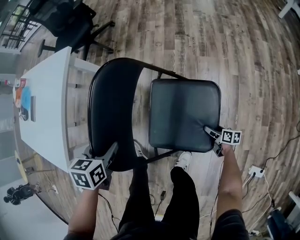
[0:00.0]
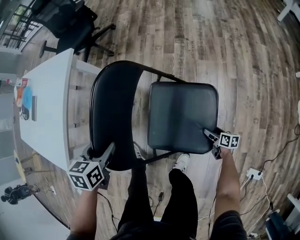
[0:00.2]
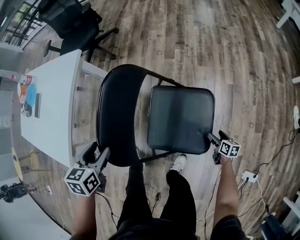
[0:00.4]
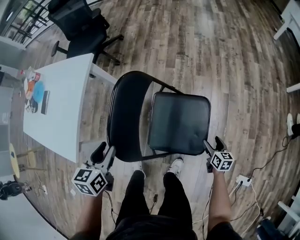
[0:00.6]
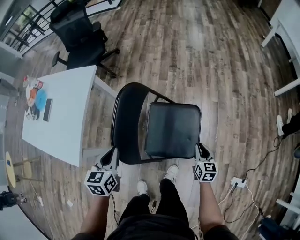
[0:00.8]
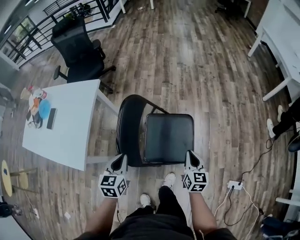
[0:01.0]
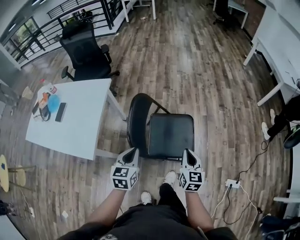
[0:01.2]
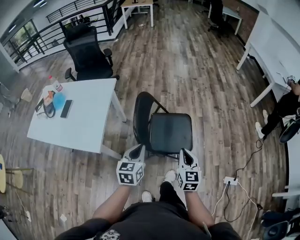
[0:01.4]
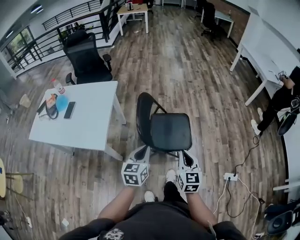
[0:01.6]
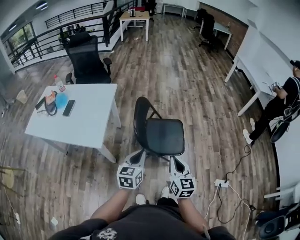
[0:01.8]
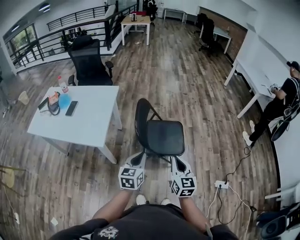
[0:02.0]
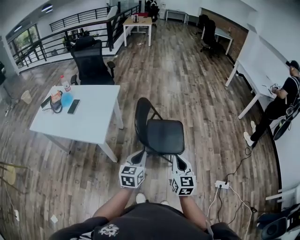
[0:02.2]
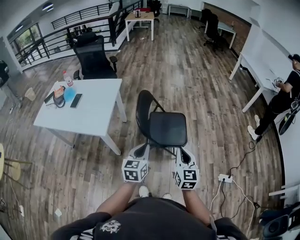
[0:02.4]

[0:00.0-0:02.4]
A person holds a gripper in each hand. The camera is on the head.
0:00.0 to 0:01.2: The right gripper moves upward, roughly 50 cm, rotates approximately 60 degrees, and closes up, while the left gripper moves upward, about 25 cm, tilts its fingers about 30 degrees upward, and closes up.
0:01.2 to 0:02.4: The grippers both shift backward and upward by roughly 30 cm.

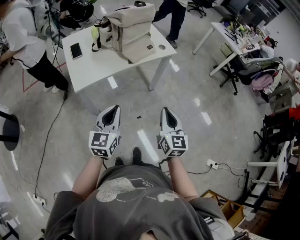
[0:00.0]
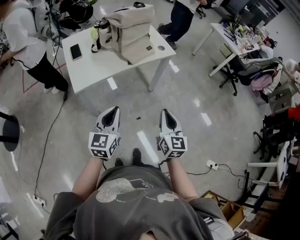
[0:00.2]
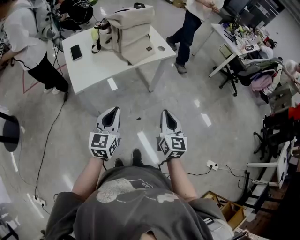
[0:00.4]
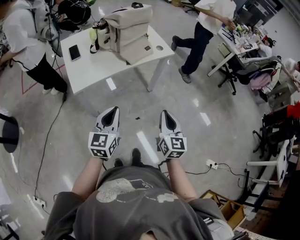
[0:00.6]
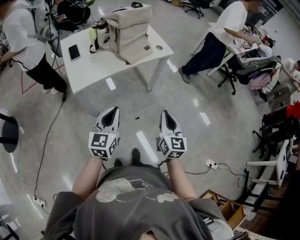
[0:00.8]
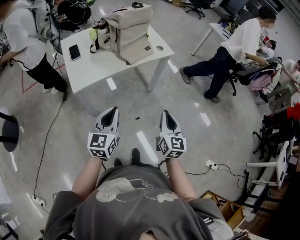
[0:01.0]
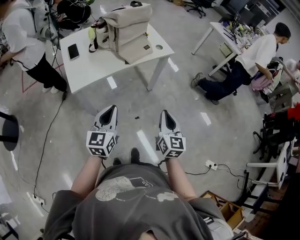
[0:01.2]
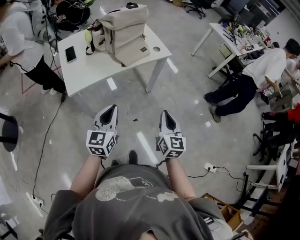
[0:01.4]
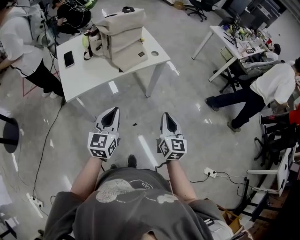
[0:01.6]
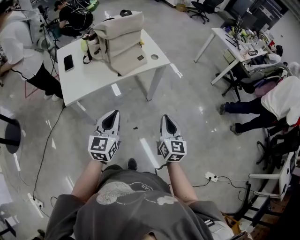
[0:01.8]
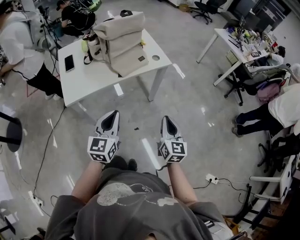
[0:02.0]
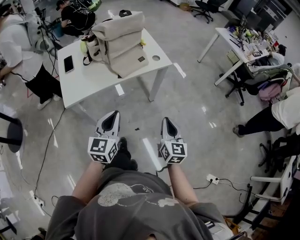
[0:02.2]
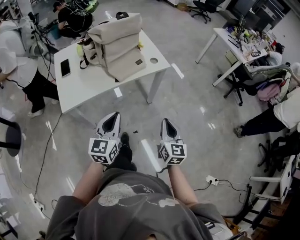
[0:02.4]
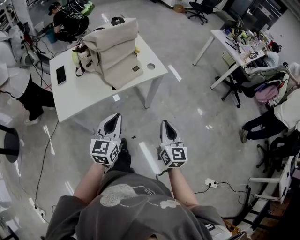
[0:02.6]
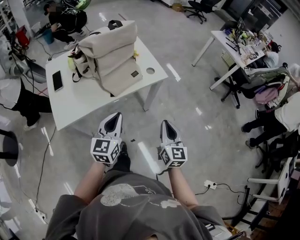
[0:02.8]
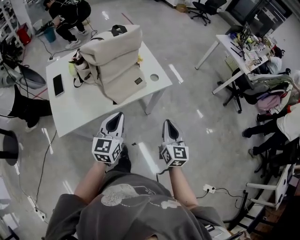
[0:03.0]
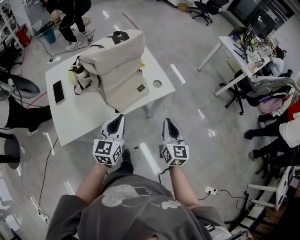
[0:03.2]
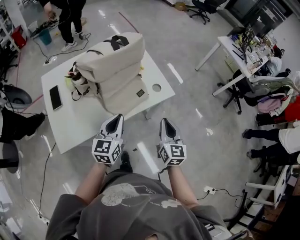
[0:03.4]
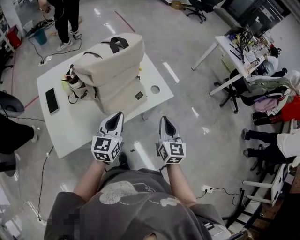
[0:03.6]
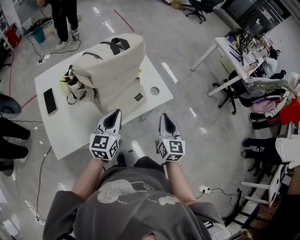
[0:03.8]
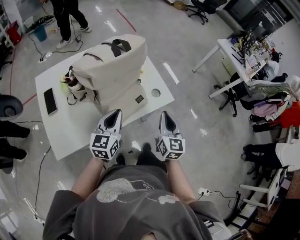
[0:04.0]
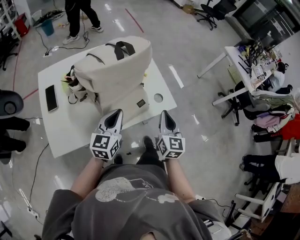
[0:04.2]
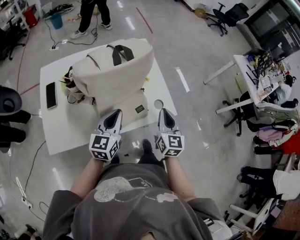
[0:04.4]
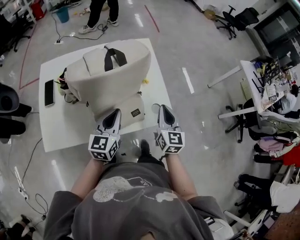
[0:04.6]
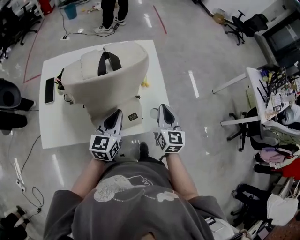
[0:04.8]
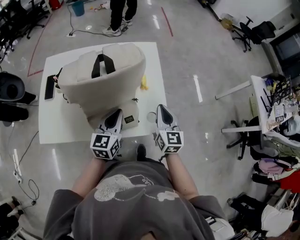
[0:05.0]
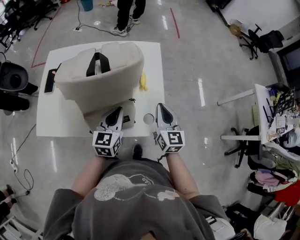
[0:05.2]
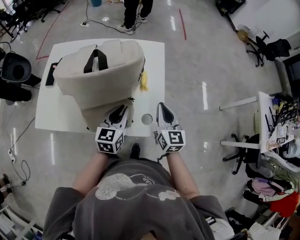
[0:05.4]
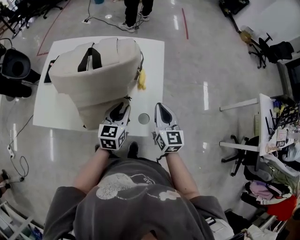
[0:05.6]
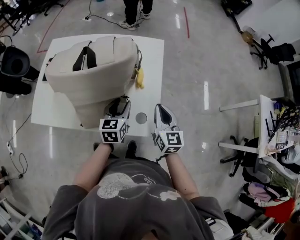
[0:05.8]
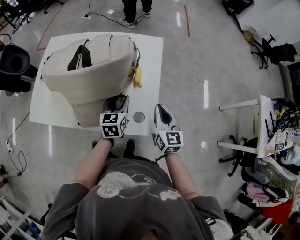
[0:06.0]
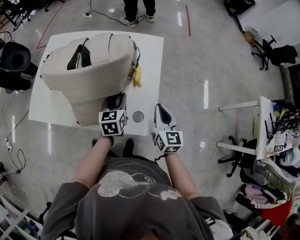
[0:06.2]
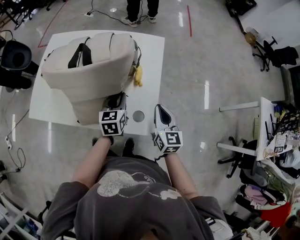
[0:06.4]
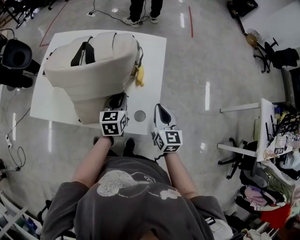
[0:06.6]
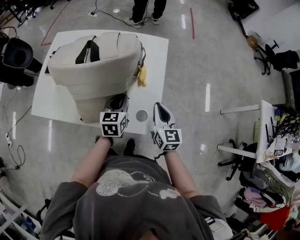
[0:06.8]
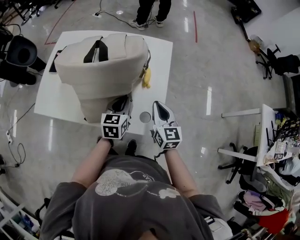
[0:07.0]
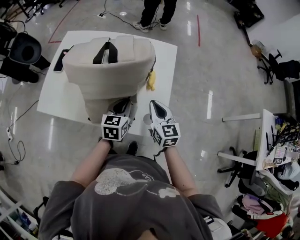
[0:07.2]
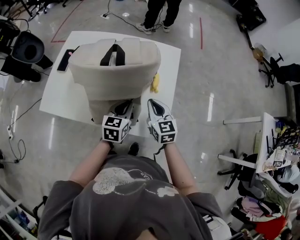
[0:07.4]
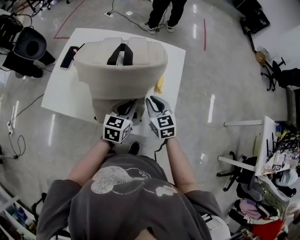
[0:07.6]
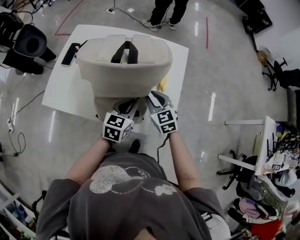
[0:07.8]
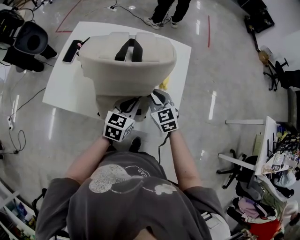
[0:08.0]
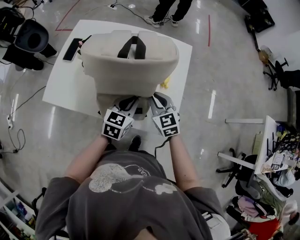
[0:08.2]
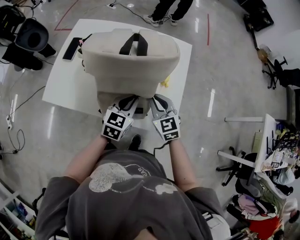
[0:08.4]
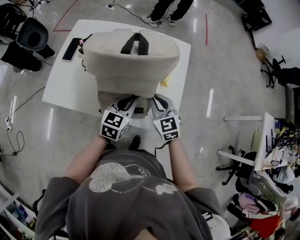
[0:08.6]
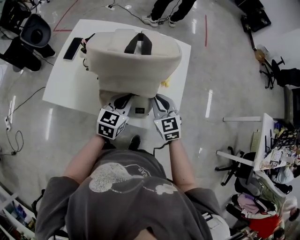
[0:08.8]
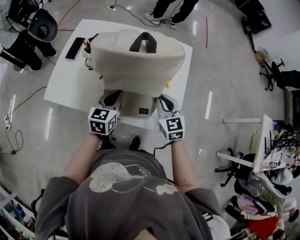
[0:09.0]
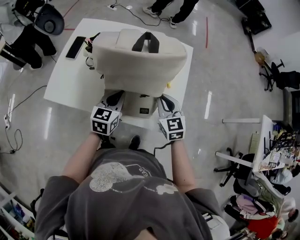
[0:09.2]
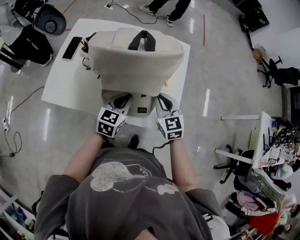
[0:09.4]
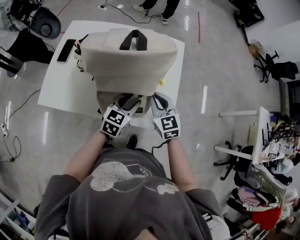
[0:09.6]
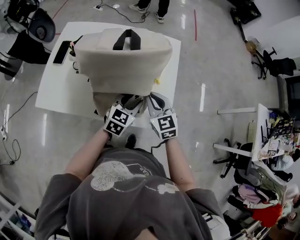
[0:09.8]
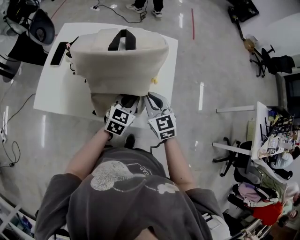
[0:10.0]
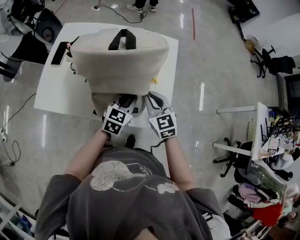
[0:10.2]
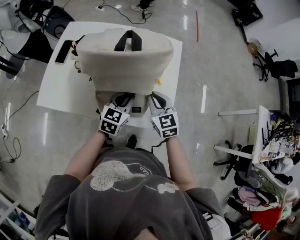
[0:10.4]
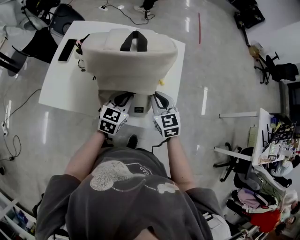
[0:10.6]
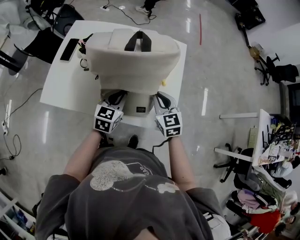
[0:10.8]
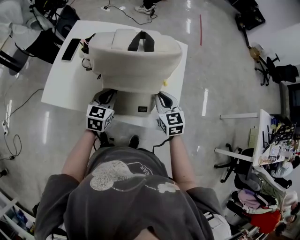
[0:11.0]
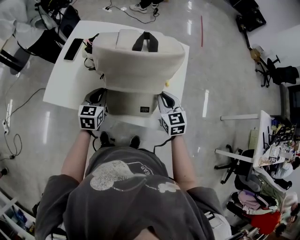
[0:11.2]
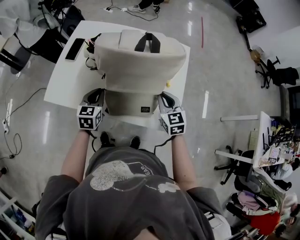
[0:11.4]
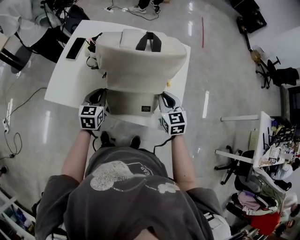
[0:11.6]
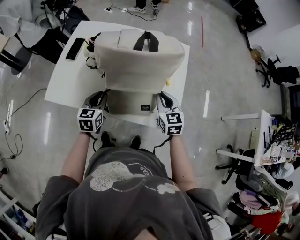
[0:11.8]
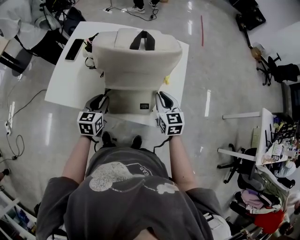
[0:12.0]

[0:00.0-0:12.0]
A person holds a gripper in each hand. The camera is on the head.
0:00.0 to 0:01.6: Both grippers travel together to the right and forward, roughly 10 cm.
0:01.6 to 0:03.0: Both grippers travel together forward, some 20 cm.
0:03.0 to 0:04.4: Both grippers travel together forward, about 25 cm.
0:04.4 to 0:06.0: The right gripper shifts by approximately 15 cm, and swivels about 30 degrees. The left gripper changes place by some 20 cm, swivels roughly 40 degrees, and opens its fingers.
0:06.0 to 0:07.6: The left gripper moves roughly 5 cm, and closes, while the right gripper goes approximately 15 cm to the left, and turns by some 30 degrees.
0:07.6 to 0:09.0: The left gripper is displaced to the left by approximately 10 cm.
0:09.0 to 0:10.4: The left gripper is displaced to the right by some 10 cm, and opens, then closes again.
0:10.4 to 0:12.0: The left gripper shifts about 15 cm to the left.

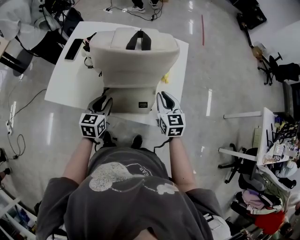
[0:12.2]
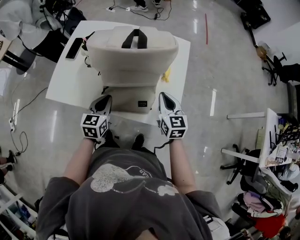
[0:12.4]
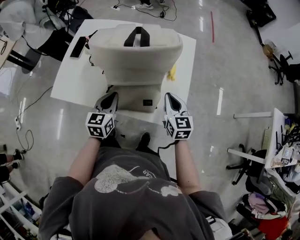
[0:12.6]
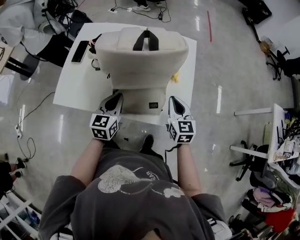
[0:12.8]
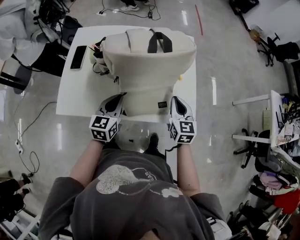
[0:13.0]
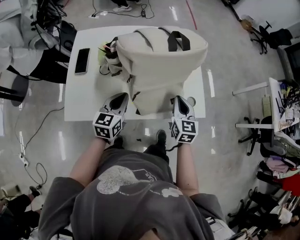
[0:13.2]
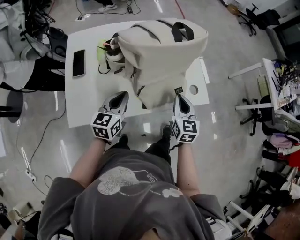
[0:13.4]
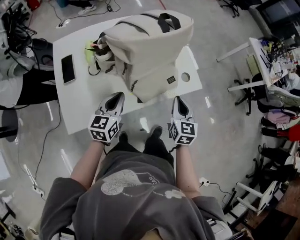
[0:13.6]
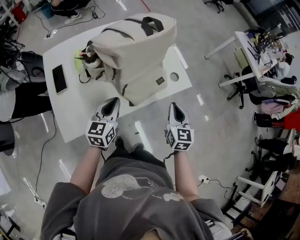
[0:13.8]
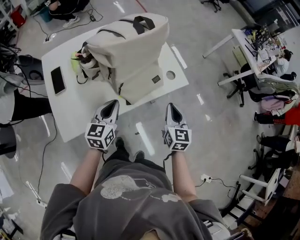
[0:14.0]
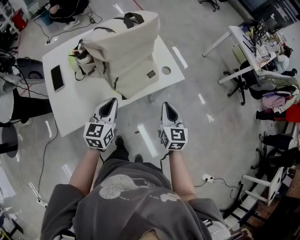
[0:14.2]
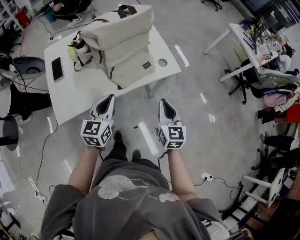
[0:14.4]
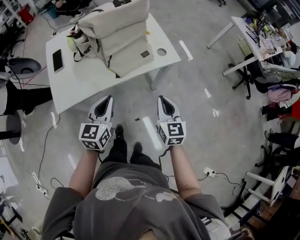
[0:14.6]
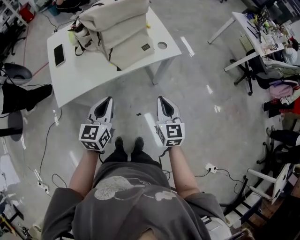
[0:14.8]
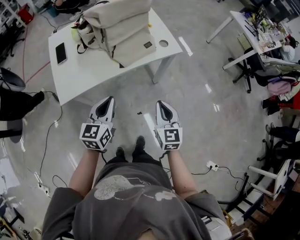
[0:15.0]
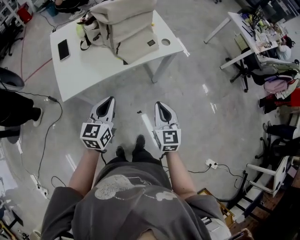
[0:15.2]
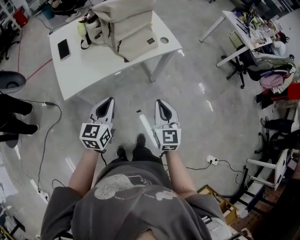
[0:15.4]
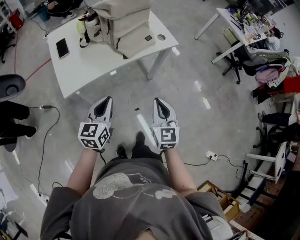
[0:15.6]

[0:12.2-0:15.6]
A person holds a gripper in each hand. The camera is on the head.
0:12.2 to 0:13.8: The left gripper shifts by about 10 cm, swivels approximately 40 degrees, and closes its fingers. Meanwhile the right gripper changes place by some 20 cm, and swivels approximately 50 degrees.
0:13.8 to 0:15.6: The two grippers go roughly 25 cm backward.

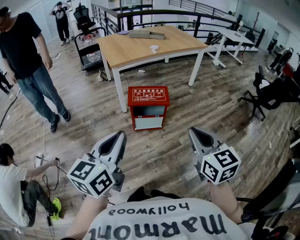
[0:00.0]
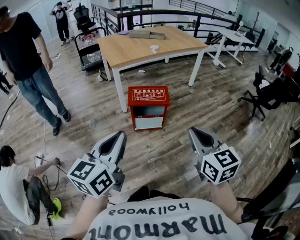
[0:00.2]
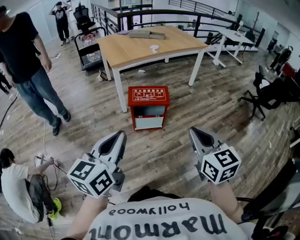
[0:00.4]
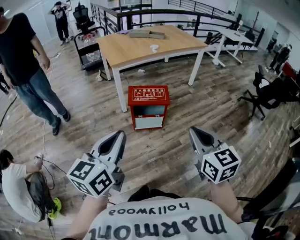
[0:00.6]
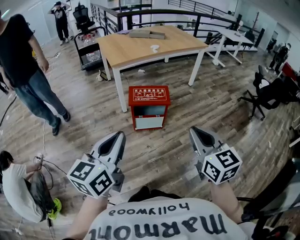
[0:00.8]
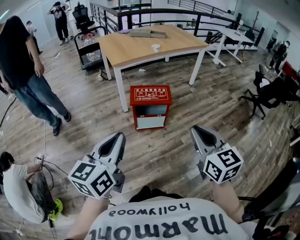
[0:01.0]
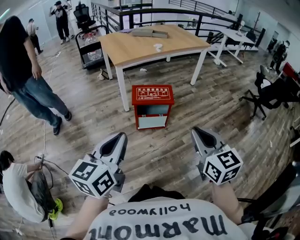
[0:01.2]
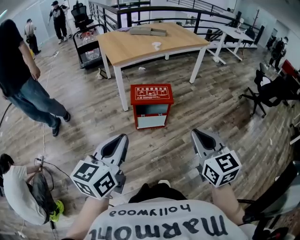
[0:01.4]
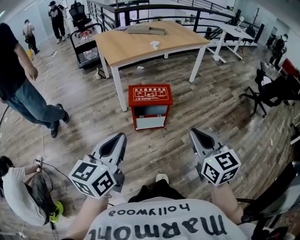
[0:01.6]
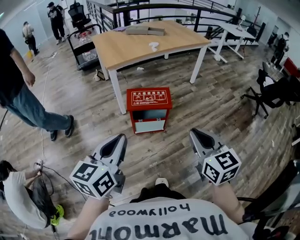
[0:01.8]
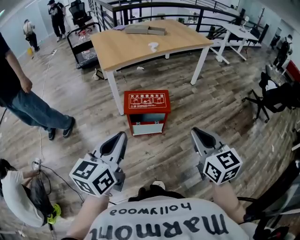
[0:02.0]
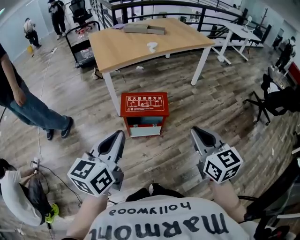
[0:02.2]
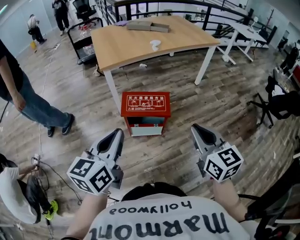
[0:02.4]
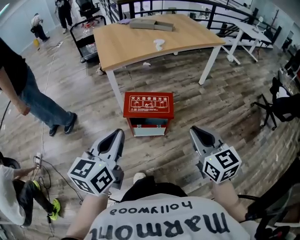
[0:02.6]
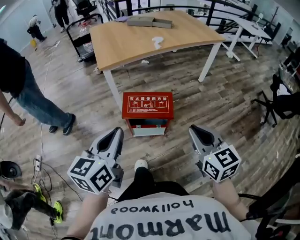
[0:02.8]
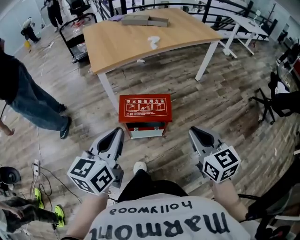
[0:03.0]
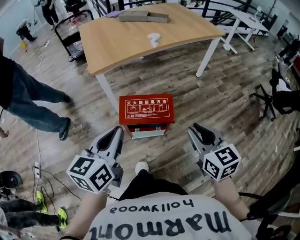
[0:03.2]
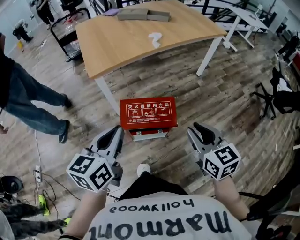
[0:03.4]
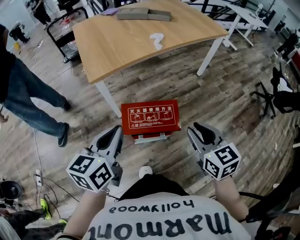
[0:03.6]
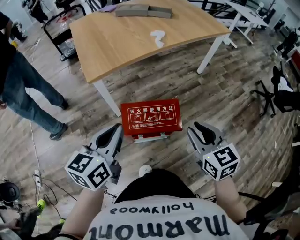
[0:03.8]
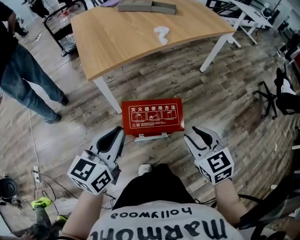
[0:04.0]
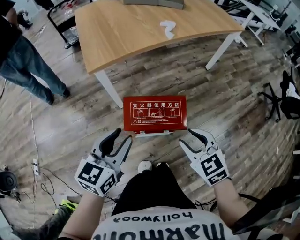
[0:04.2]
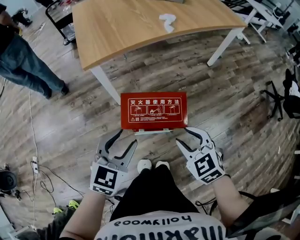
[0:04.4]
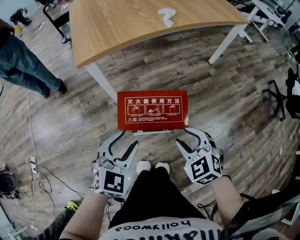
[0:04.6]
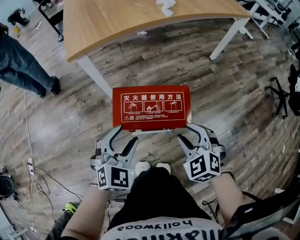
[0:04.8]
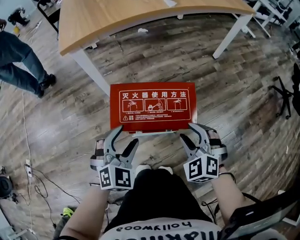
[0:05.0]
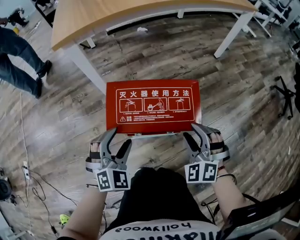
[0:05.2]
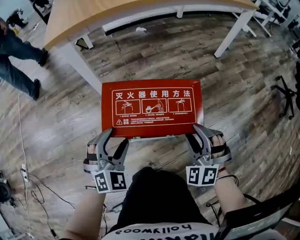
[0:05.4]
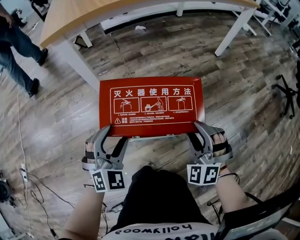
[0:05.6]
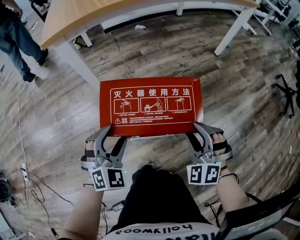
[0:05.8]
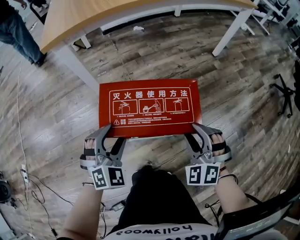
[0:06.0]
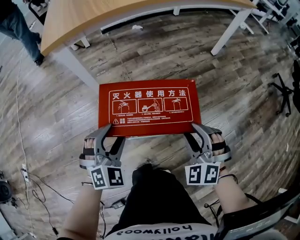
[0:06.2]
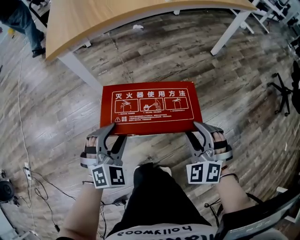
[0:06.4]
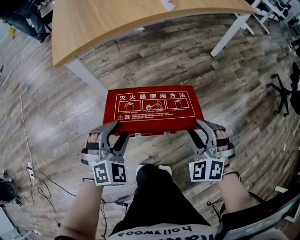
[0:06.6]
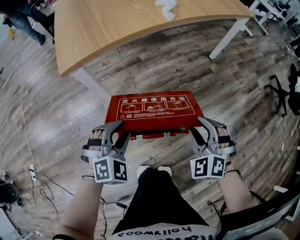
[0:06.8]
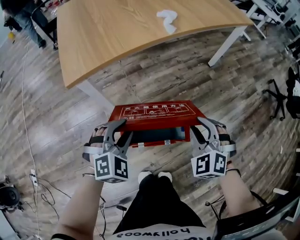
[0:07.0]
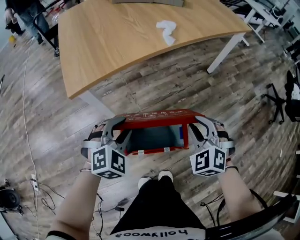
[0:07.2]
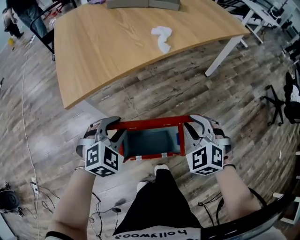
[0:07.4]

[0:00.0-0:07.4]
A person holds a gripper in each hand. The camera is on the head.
0:00.0 to 0:01.4: The left gripper shifts by some 5 cm.
0:01.4 to 0:03.0: The two grippers go some 30 cm forward.
0:03.0 to 0:04.4: The left gripper heads downward and forward, covering roughly 20 cm, rotates approximately 30 degrees, and opens its fingers. Meanwhile the right gripper moves downward, forward and to the left, roughly 25 cm, turns by roughly 30 degrees, and opens.
0:04.4 to 0:06.0: The two grippers go some 25 cm downward. The left gripper turns by roughly 40 degrees; the right gripper swivels about 40 degrees.
0:06.0 to 0:07.4: The grippers both shift upward and forward by roughly 25 cm. The left gripper closes up.
